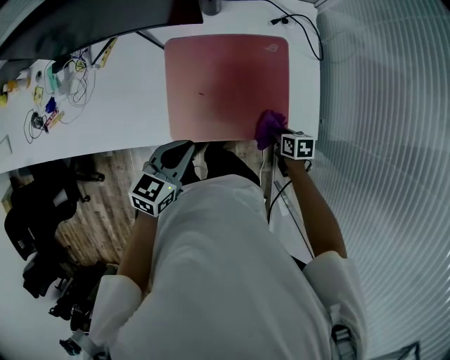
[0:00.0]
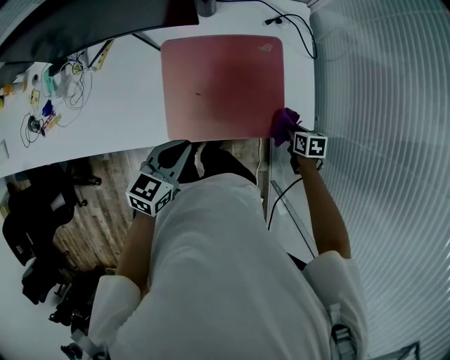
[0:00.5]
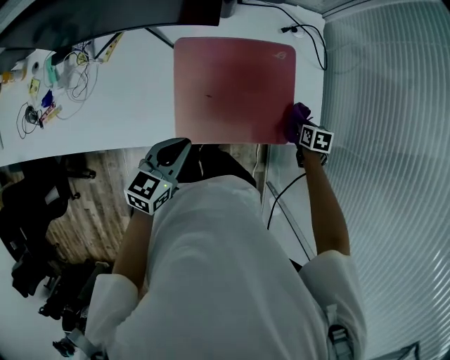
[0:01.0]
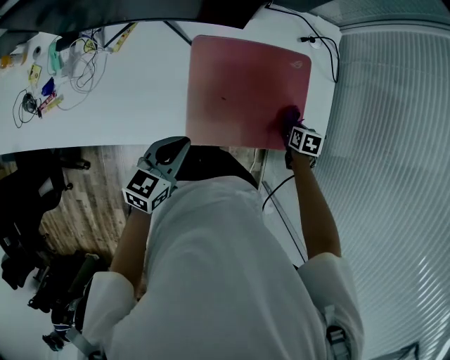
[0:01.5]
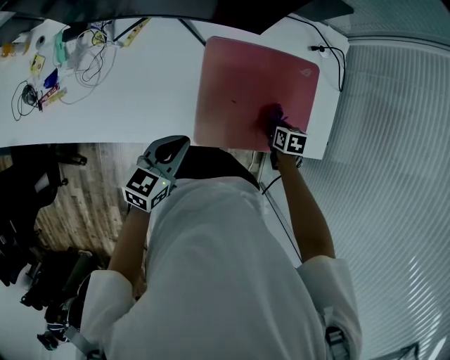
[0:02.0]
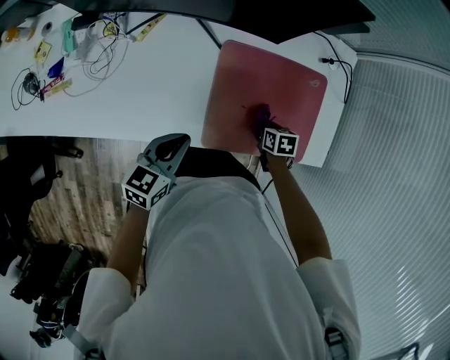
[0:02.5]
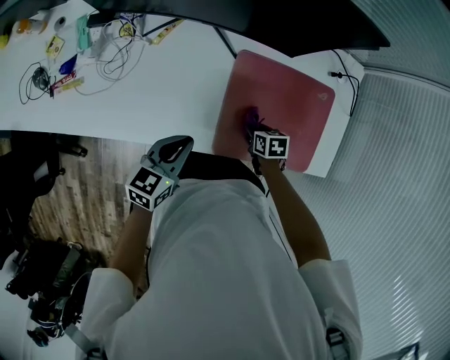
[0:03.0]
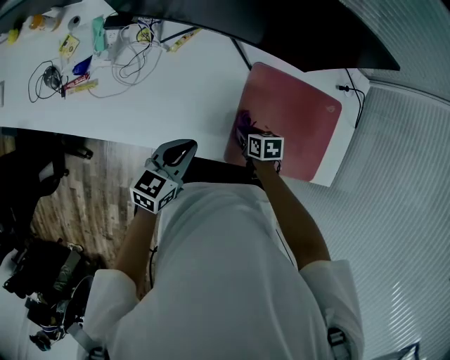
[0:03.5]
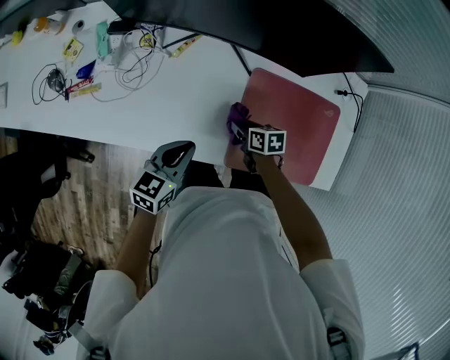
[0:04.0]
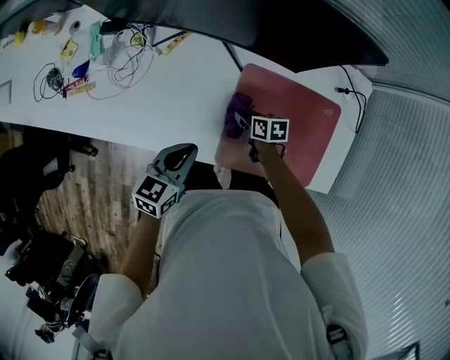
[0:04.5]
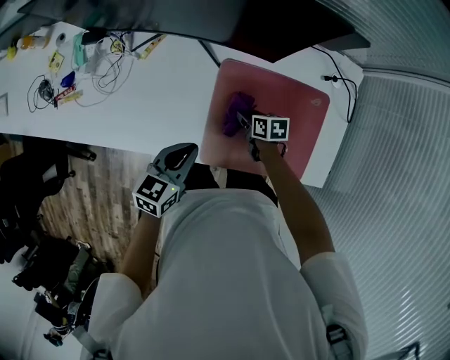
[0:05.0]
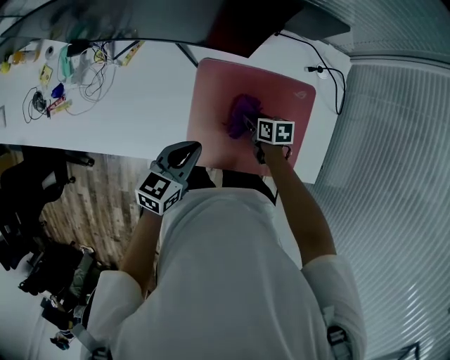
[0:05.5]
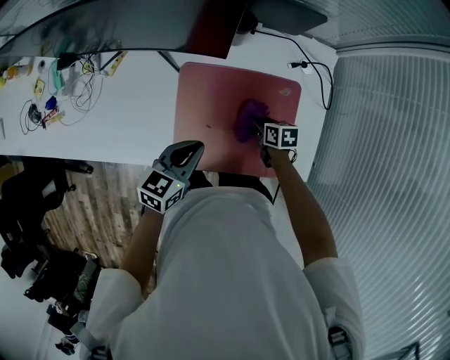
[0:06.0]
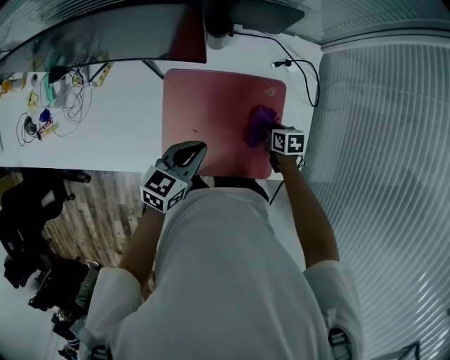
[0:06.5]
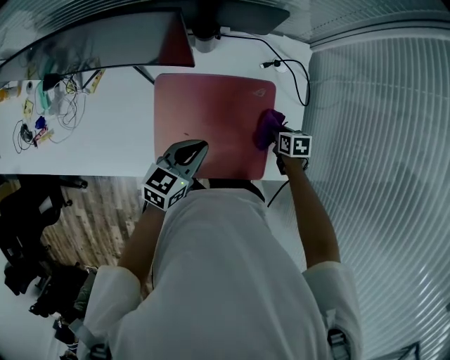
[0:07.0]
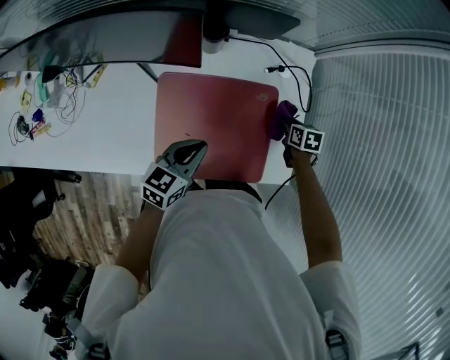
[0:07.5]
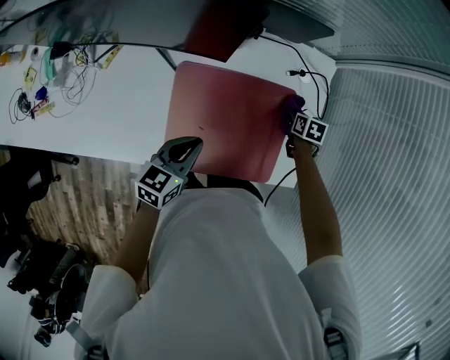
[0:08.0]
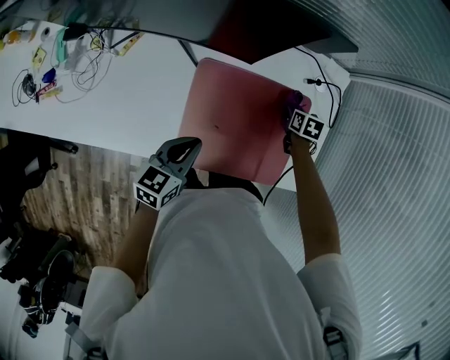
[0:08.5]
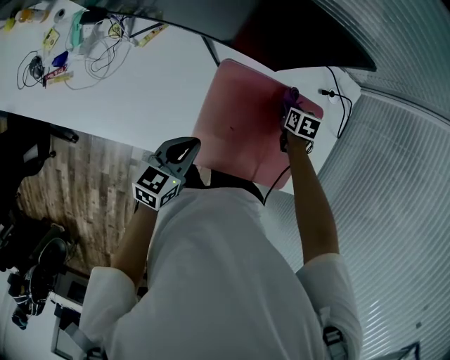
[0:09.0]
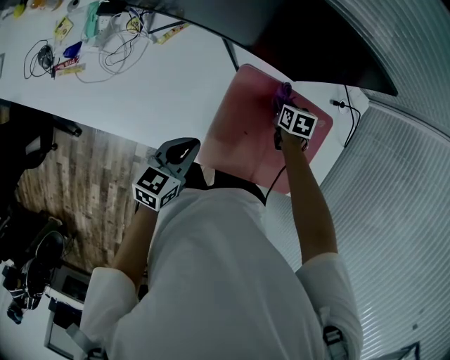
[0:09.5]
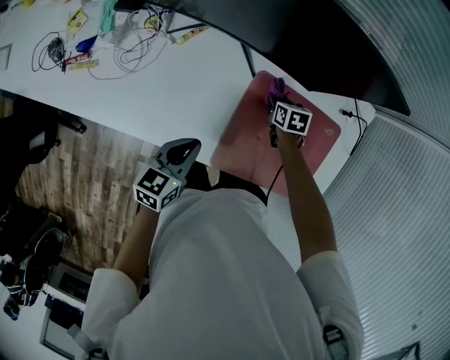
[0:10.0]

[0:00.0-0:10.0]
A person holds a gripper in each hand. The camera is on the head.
0:00.0 to 0:02.0: The left gripper is displaced to the left by some 15 cm; the right gripper shifts some 15 cm to the left and forward.
0:02.0 to 0:04.0: The left gripper goes approximately 10 cm to the left; the right gripper heads to the left, covering some 30 cm, and swivels roughly 30 degrees.
0:04.0 to 0:06.0: The grippers both shift to the right by approximately 25 cm.
0:06.0 to 0:08.0: The left gripper reaches roughly 10 cm to the right, then returns; the right gripper goes about 20 cm to the right and forward, and rotates about 20 degrees.
0:08.0 to 0:10.0: The right gripper goes roughly 35 cm to the left, and turns by some 20 degrees, while the left gripper shifts roughly 20 cm to the left.

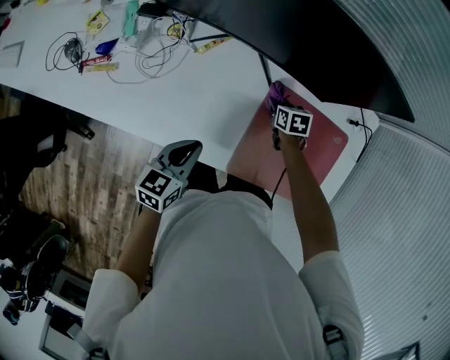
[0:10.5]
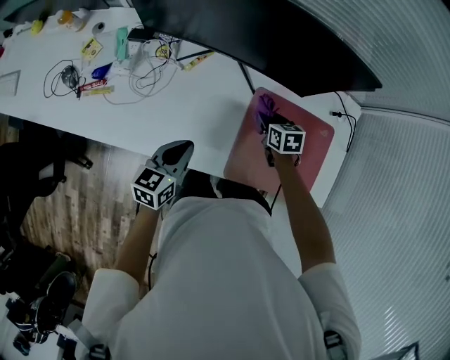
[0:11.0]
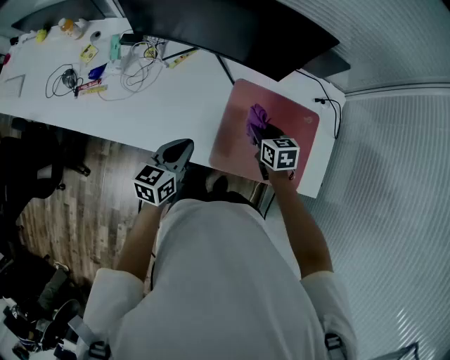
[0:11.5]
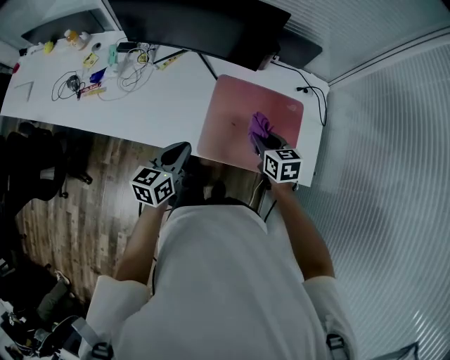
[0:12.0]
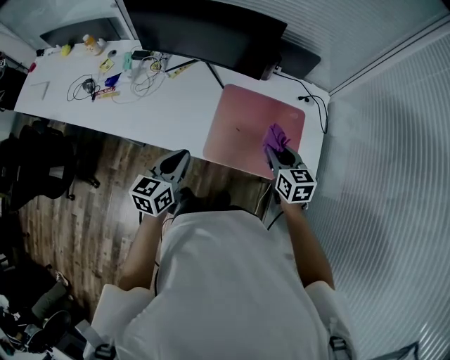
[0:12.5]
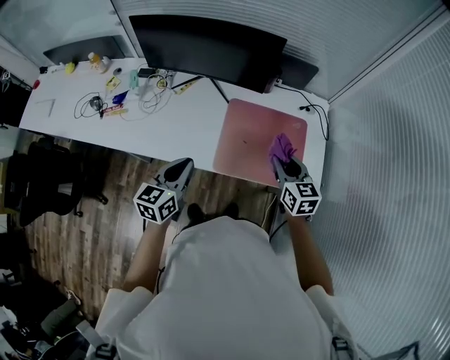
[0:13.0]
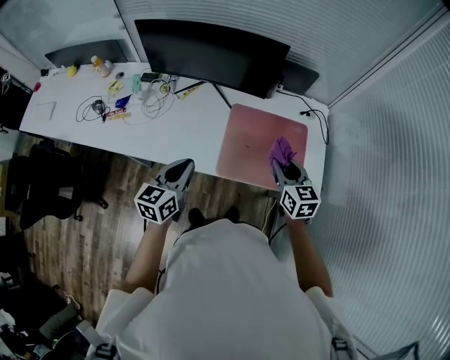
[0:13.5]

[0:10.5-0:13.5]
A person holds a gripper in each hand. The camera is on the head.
0:10.5 to 0:12.0: The left gripper is displaced backward, to the right and upward by approximately 20 cm, while the right gripper goes about 35 cm backward, upward and to the right, and swivels approximately 20 degrees.
0:12.0 to 0:13.5: The right gripper travels upward and backward by roughly 15 cm. Meanwhile the left gripper heads upward and to the left, covering approximately 10 cm.

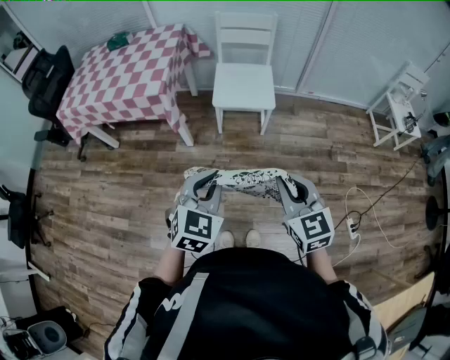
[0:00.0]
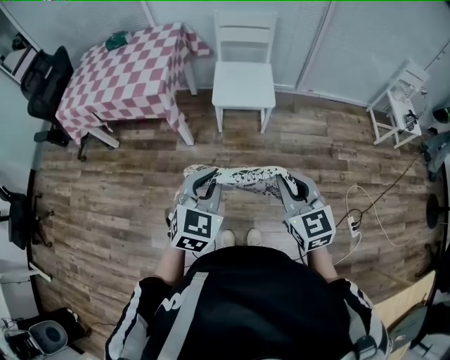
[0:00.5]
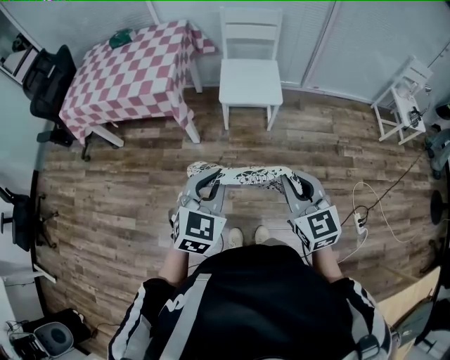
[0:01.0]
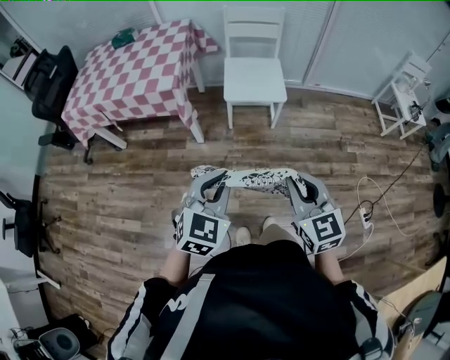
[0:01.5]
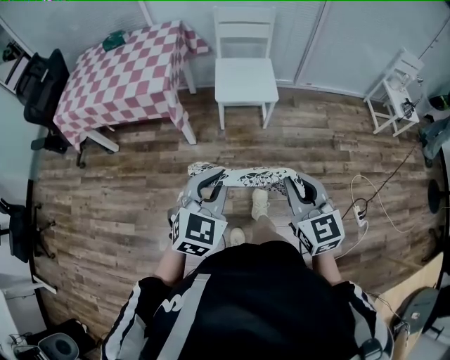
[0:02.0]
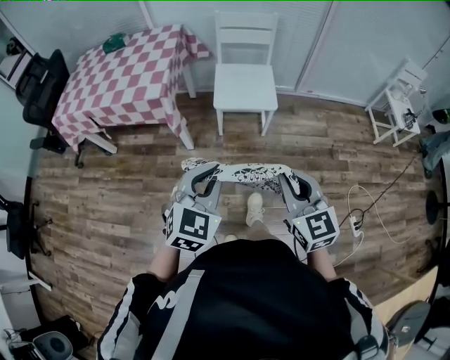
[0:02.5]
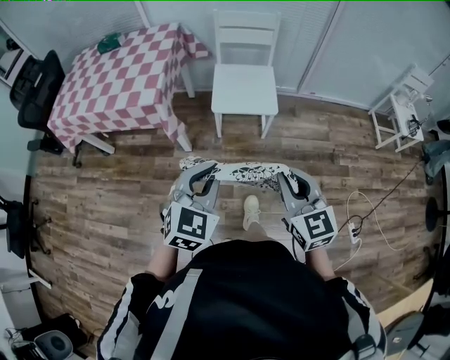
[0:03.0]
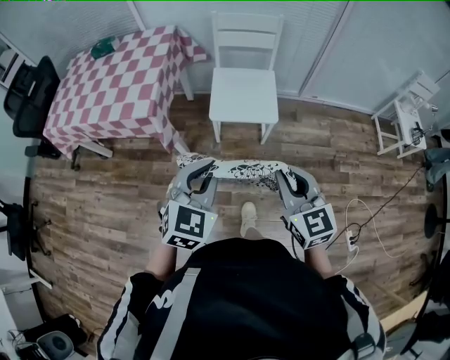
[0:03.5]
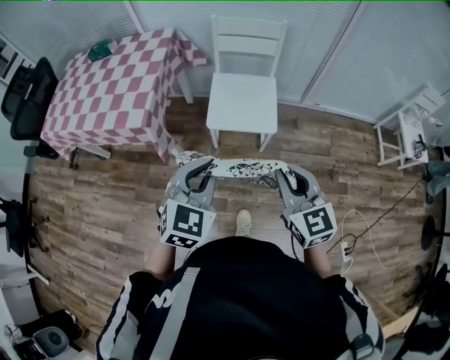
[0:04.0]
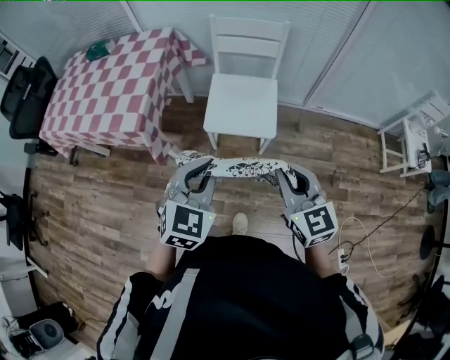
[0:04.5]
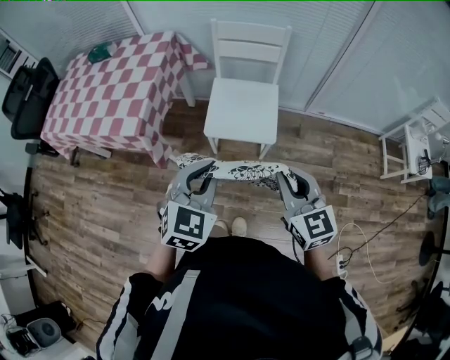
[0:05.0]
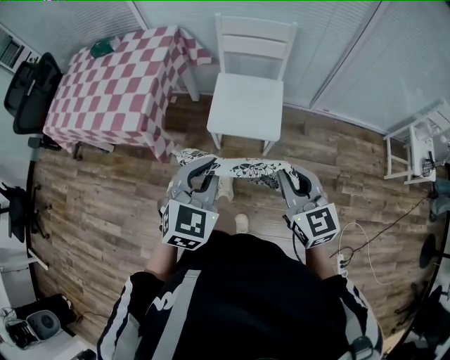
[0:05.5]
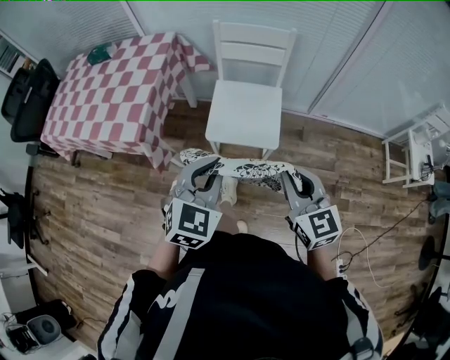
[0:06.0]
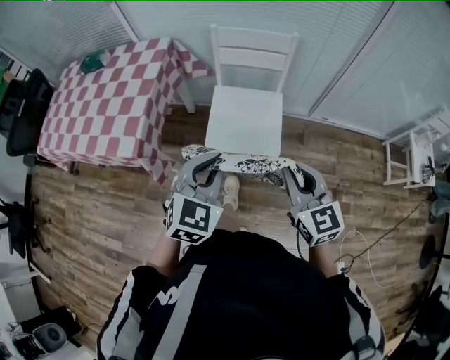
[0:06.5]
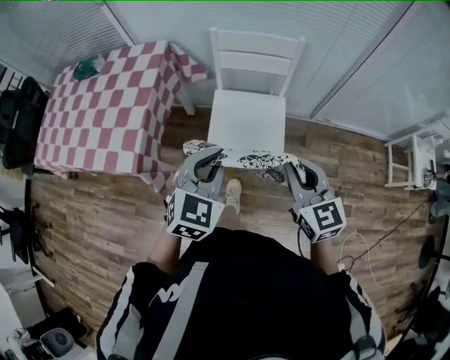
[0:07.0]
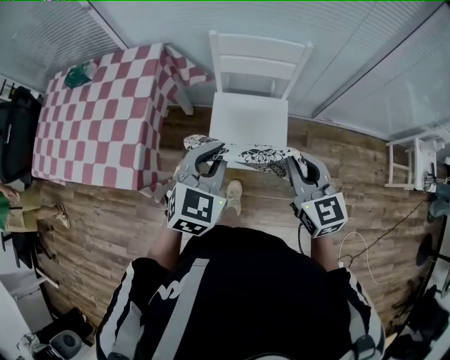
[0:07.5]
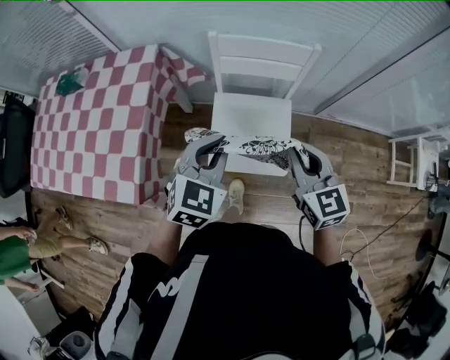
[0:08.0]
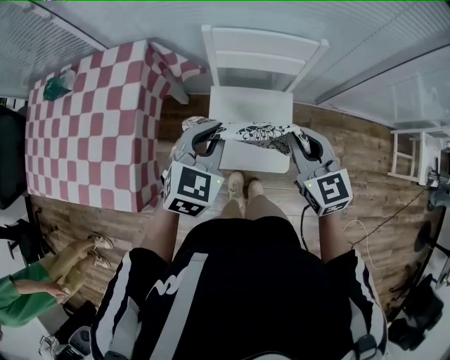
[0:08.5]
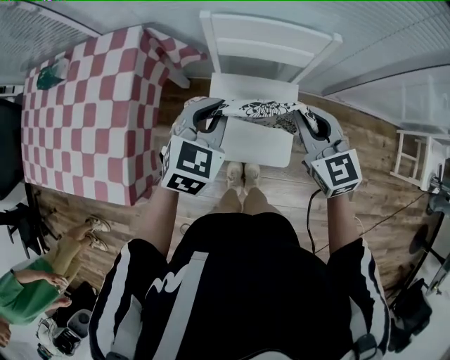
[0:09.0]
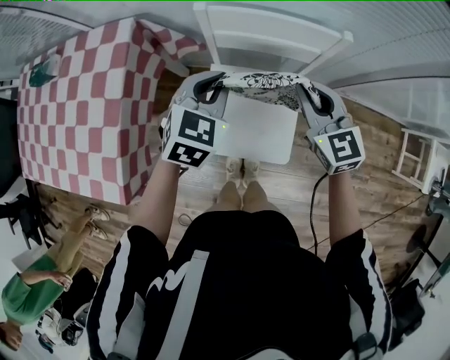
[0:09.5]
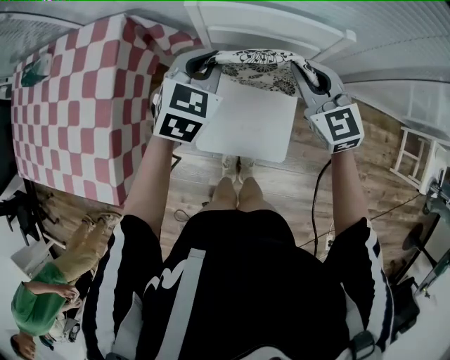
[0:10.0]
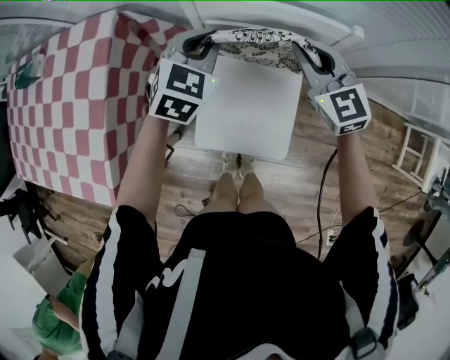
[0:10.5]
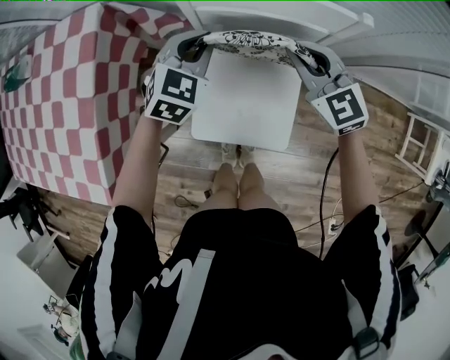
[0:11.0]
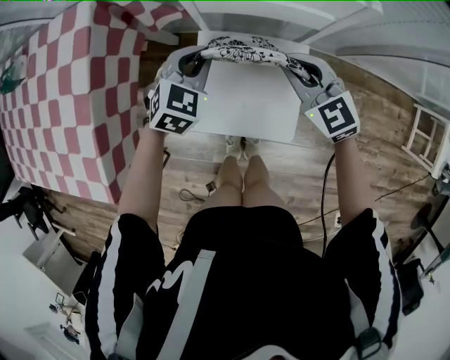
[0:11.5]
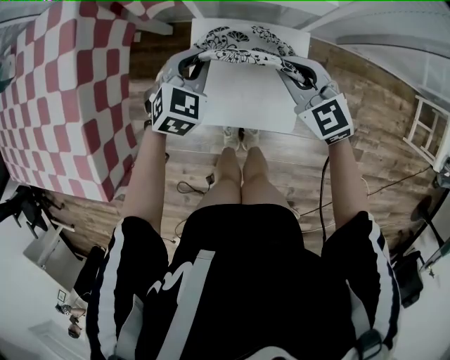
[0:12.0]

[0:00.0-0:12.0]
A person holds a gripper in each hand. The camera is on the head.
0:00.0 to 0:02.0: The right gripper shifts by approximately 5 cm.
0:02.0 to 0:04.0: Both grippers travel together forward, roughly 25 cm.
0:04.0 to 0:06.0: Both grippers travel together forward and to the right, about 10 cm.
0:06.0 to 0:08.0: The grippers both shift forward by about 30 cm.
0:08.0 to 0:10.0: Both grippers move forward and downward, roughly 25 cm.
0:10.0 to 0:12.0: The left gripper heads downward, covering about 20 cm, while the right gripper travels downward and backward by approximately 15 cm.

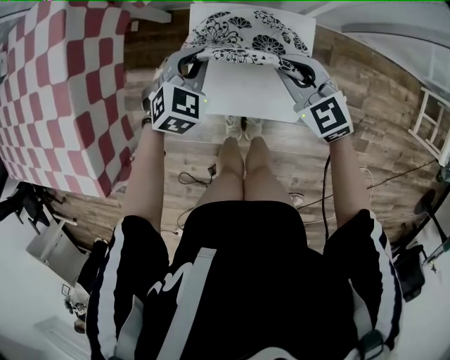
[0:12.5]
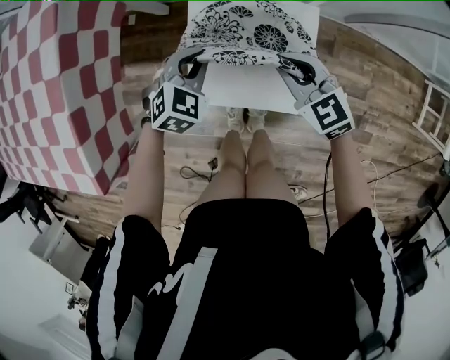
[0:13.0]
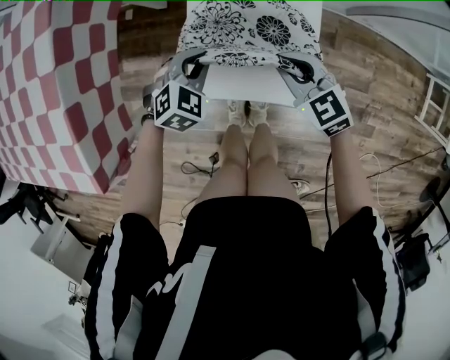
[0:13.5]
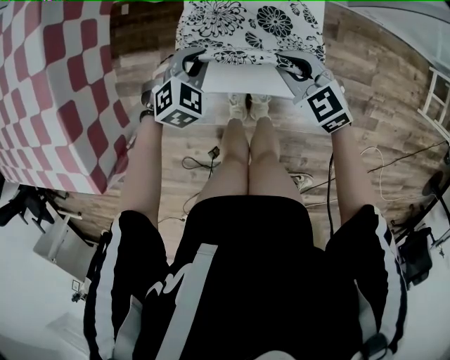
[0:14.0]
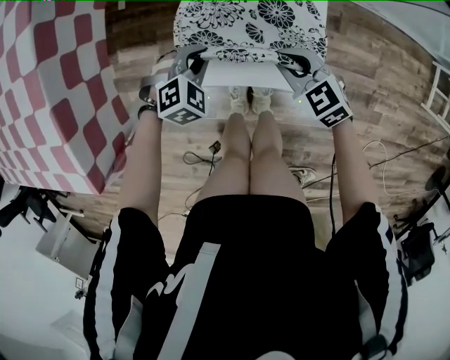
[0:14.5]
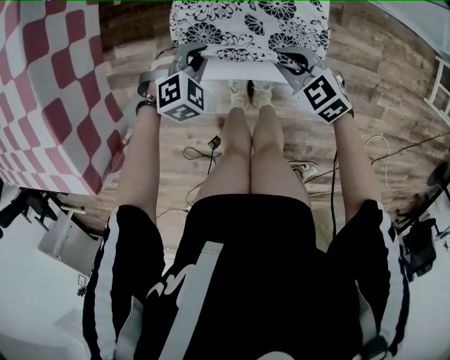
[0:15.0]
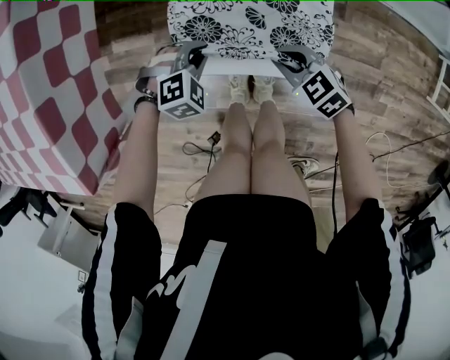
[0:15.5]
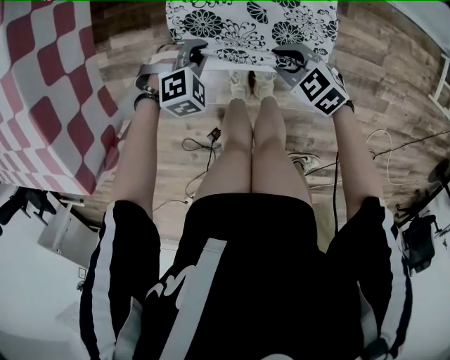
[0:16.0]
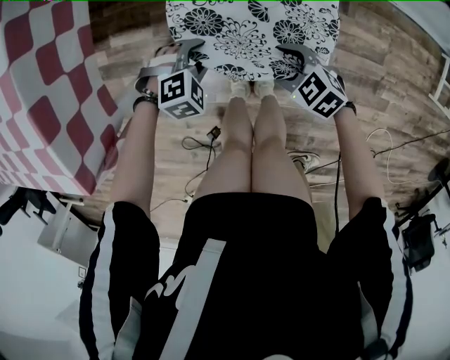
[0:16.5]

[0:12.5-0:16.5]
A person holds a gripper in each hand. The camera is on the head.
0:12.5 to 0:14.5: Both grippers move downward and backward, some 15 cm. The left gripper turns by about 20 degrees.
0:14.5 to 0:16.5: The left gripper changes place by approximately 10 cm, and opens. Meanwhile the right gripper ends up about 10 cm from where it was, and opens up.
